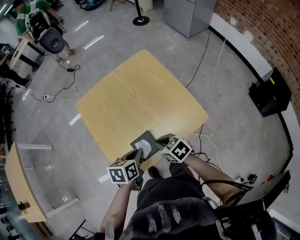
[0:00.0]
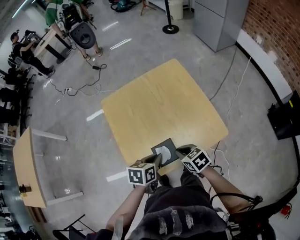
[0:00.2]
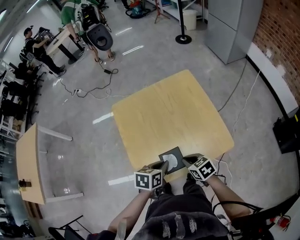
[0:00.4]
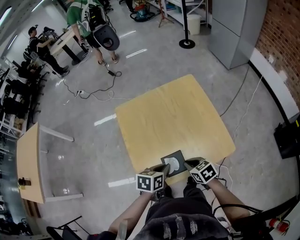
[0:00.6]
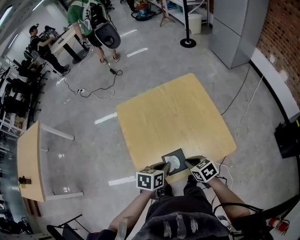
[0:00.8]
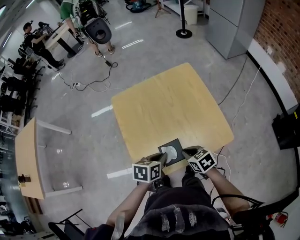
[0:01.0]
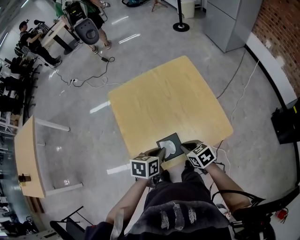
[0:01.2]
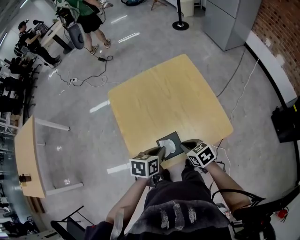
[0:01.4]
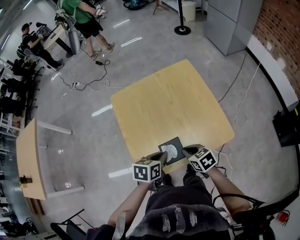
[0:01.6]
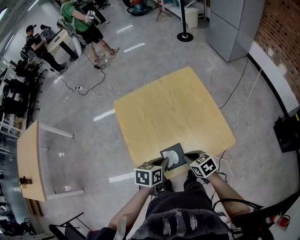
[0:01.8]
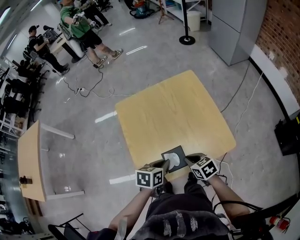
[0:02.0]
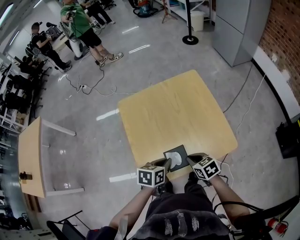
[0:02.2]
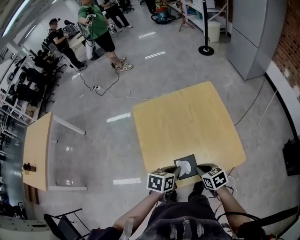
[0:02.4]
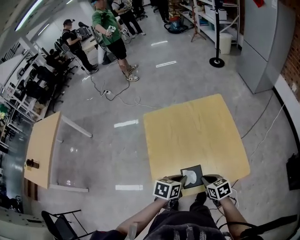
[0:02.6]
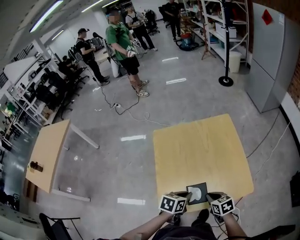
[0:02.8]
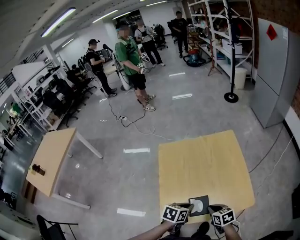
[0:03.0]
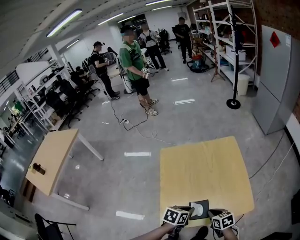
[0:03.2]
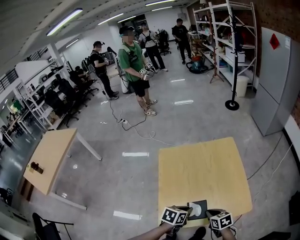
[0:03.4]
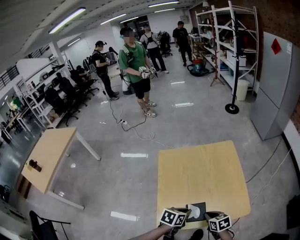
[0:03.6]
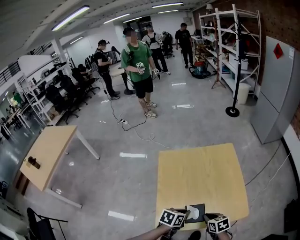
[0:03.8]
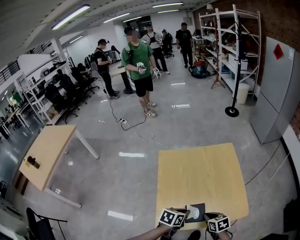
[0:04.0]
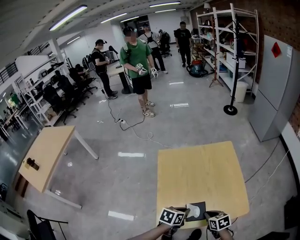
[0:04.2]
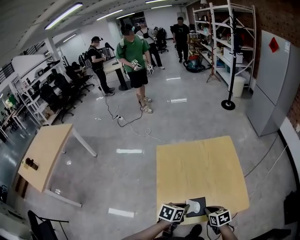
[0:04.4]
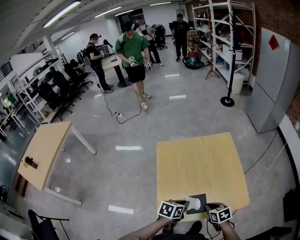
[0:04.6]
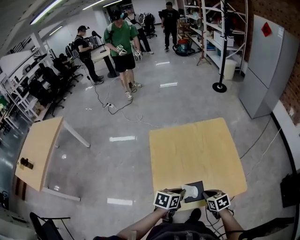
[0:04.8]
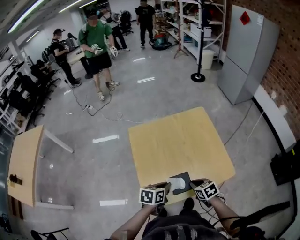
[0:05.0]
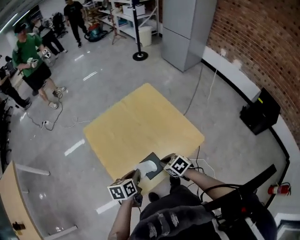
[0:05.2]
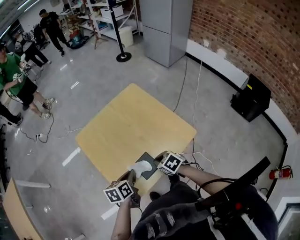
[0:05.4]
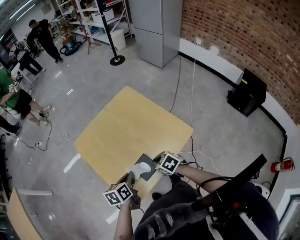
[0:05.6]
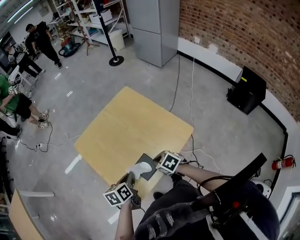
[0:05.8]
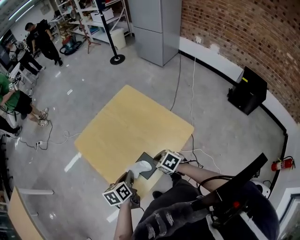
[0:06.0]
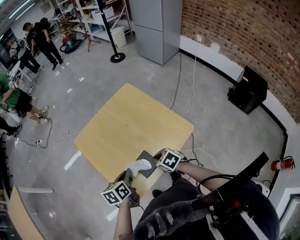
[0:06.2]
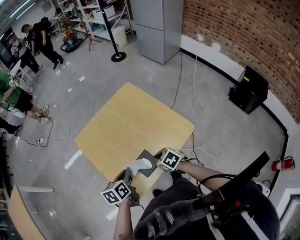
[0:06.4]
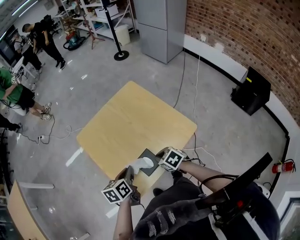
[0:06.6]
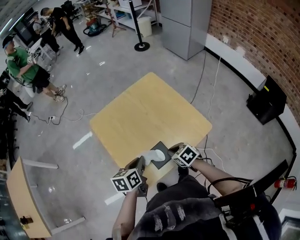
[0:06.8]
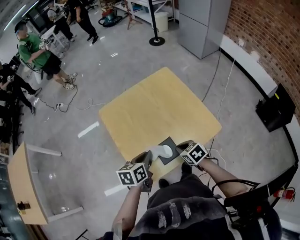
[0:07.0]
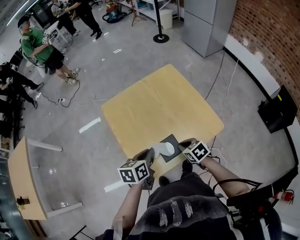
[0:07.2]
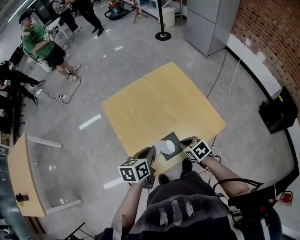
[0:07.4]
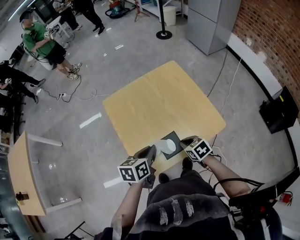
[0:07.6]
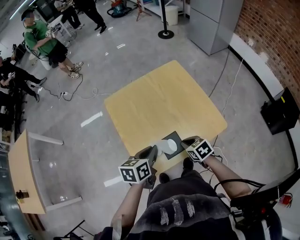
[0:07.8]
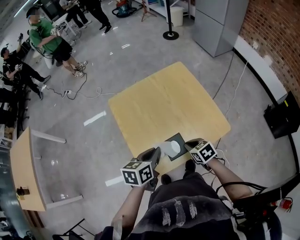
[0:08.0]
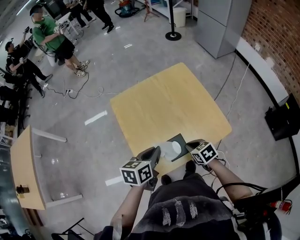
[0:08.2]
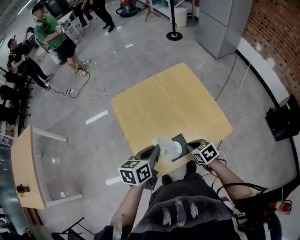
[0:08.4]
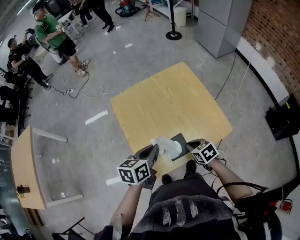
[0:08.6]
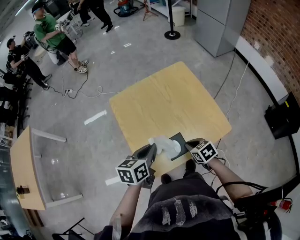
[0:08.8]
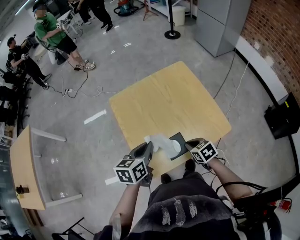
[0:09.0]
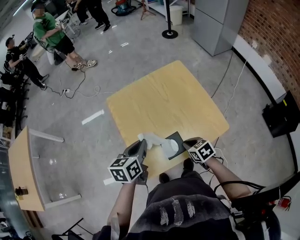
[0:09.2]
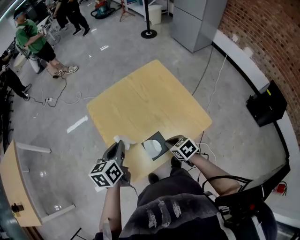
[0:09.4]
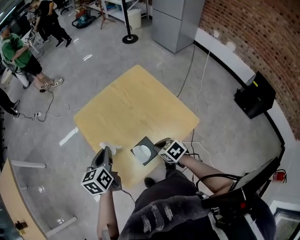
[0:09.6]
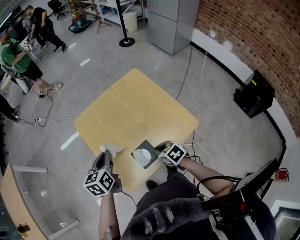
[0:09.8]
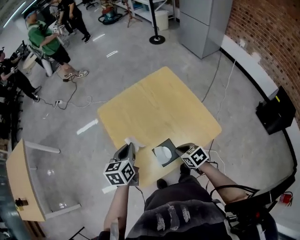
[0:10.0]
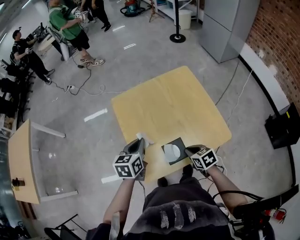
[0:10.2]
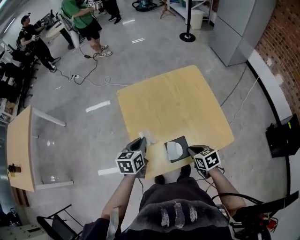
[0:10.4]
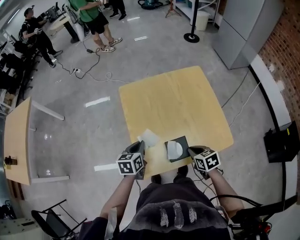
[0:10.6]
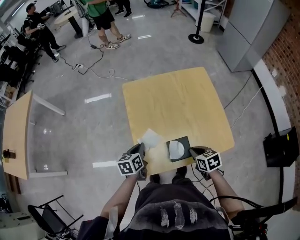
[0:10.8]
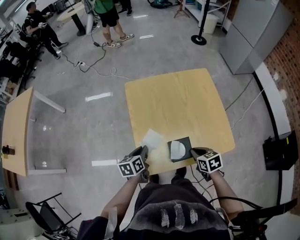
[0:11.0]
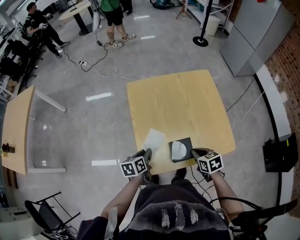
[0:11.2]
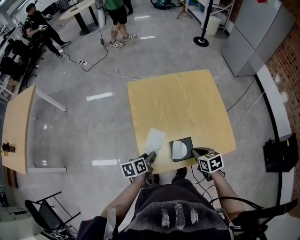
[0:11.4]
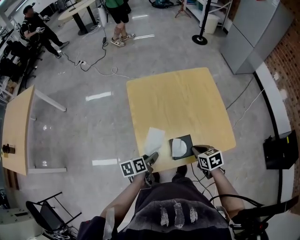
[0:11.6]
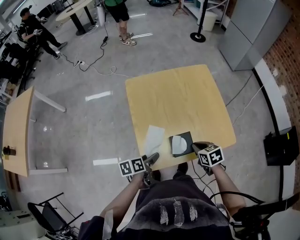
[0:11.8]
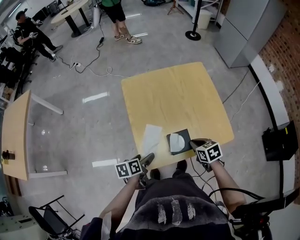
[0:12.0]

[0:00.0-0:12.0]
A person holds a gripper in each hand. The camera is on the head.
0:00.0 to 0:01.6: The grippers move only a little.
0:01.6 to 0:03.0: Both grippers stay about where they are.
0:03.0 to 0:04.4: The grippers stay close to where they were, moving slightly.
0:06.0 to 0:07.6: The grippers move only a little.
0:07.6 to 0:09.0: The left gripper moves about 5 cm.
0:09.0 to 0:10.4: The left gripper shifts about 5 cm downward.
0:10.4 to 0:12.0: The left gripper is displaced backward and downward by some 15 cm, rotates approximately 30 degrees, and opens its fingers.

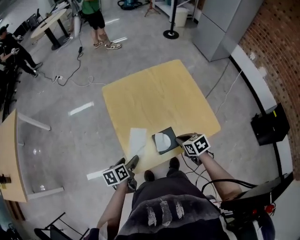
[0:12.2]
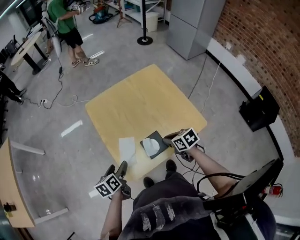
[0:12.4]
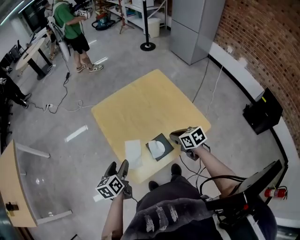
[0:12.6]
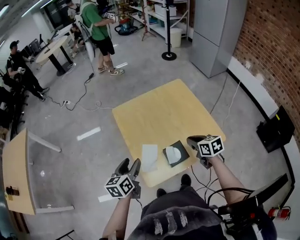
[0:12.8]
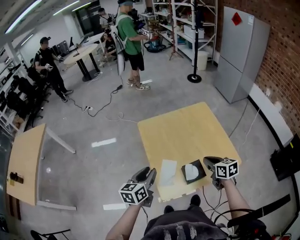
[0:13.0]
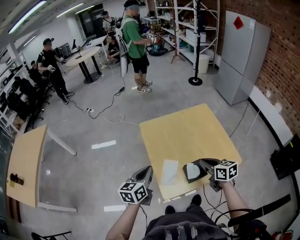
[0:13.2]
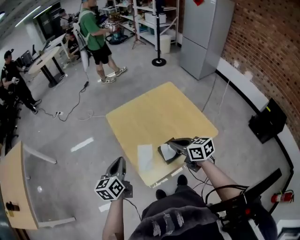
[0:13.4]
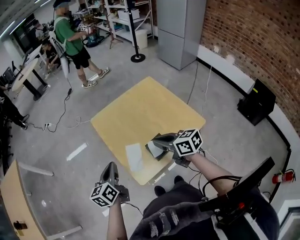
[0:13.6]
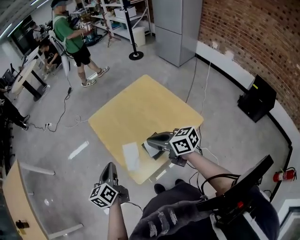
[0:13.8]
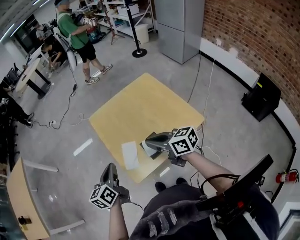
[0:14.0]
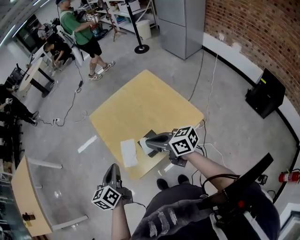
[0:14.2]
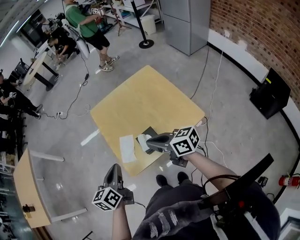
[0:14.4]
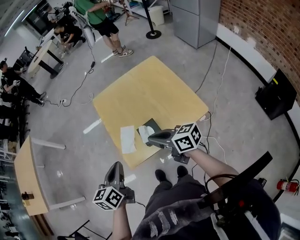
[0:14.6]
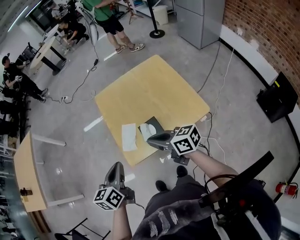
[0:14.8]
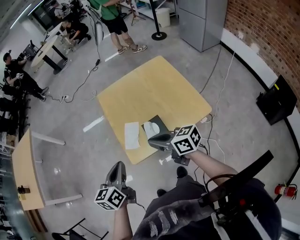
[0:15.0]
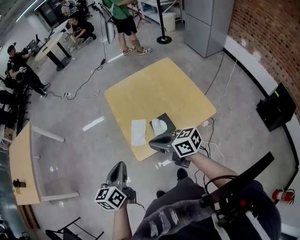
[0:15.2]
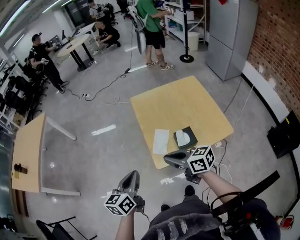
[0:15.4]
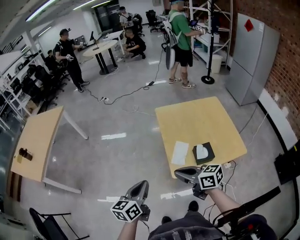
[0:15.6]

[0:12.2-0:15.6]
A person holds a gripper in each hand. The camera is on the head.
0:12.2 to 0:13.8: The grippers both shift upward by some 20 cm. The right gripper tilts its fingers some 40 degrees upward; the left gripper rotates some 30 degrees, and closes its fingers.
0:13.8 to 0:15.6: The left gripper is displaced backward and to the left by about 25 cm; the right gripper moves to the left and backward, about 25 cm, and rotates about 20 degrees.

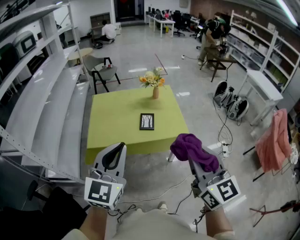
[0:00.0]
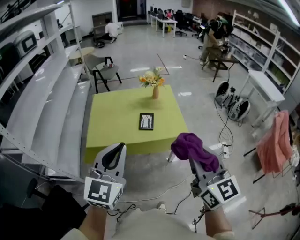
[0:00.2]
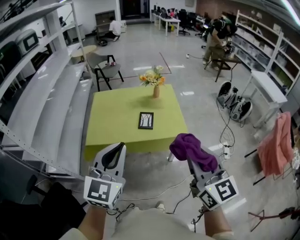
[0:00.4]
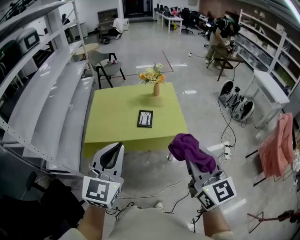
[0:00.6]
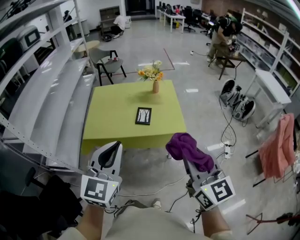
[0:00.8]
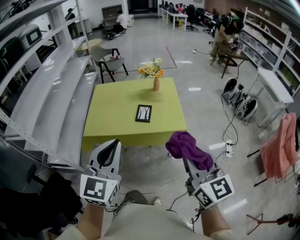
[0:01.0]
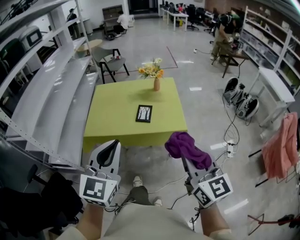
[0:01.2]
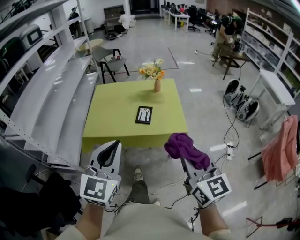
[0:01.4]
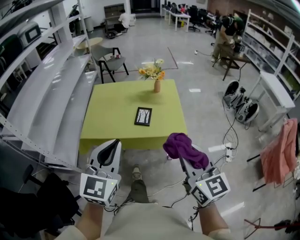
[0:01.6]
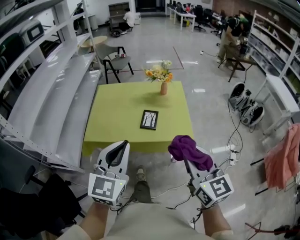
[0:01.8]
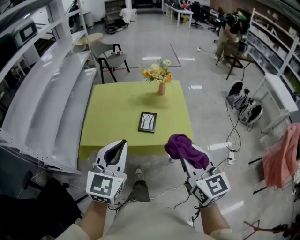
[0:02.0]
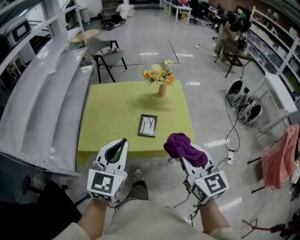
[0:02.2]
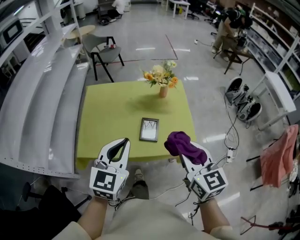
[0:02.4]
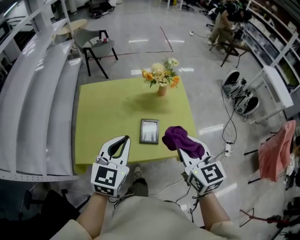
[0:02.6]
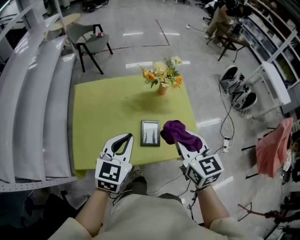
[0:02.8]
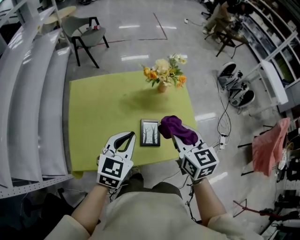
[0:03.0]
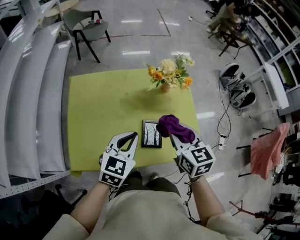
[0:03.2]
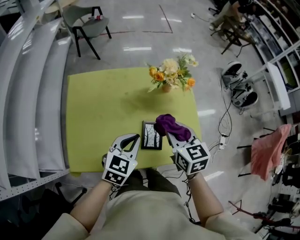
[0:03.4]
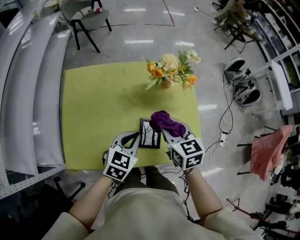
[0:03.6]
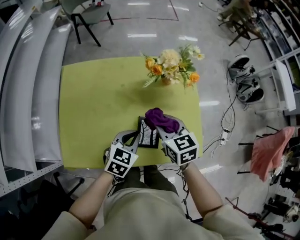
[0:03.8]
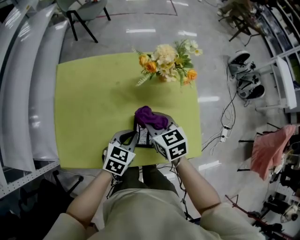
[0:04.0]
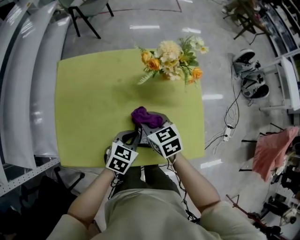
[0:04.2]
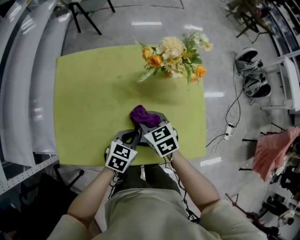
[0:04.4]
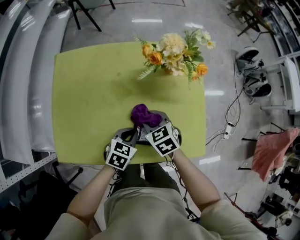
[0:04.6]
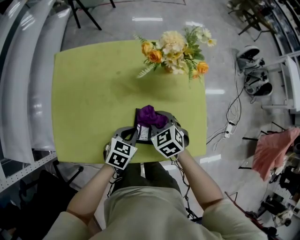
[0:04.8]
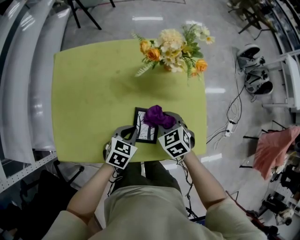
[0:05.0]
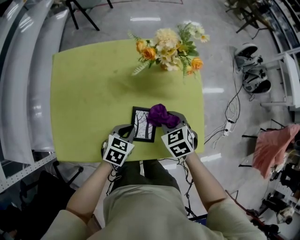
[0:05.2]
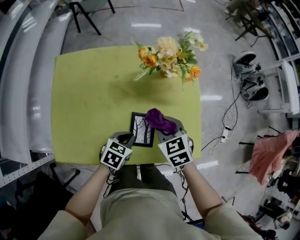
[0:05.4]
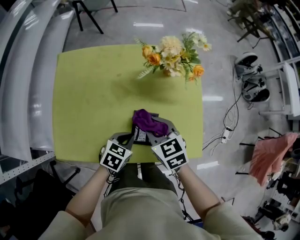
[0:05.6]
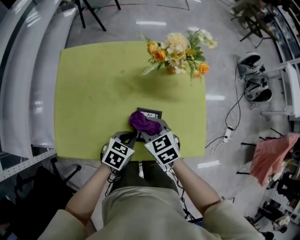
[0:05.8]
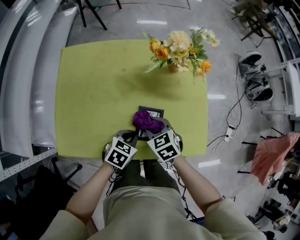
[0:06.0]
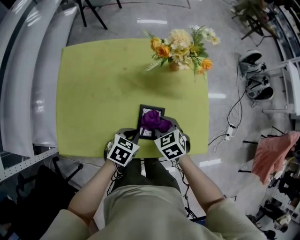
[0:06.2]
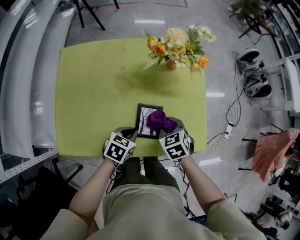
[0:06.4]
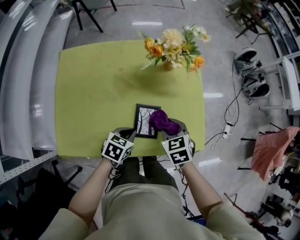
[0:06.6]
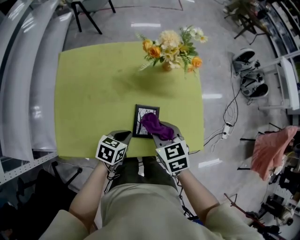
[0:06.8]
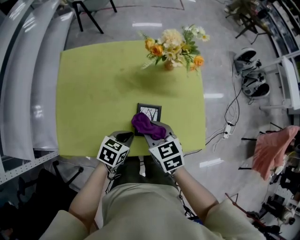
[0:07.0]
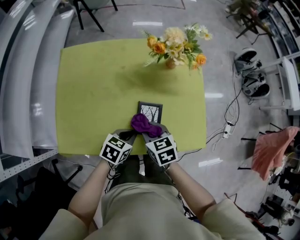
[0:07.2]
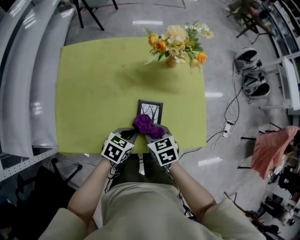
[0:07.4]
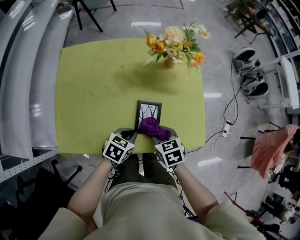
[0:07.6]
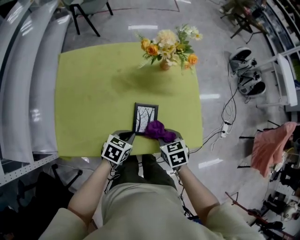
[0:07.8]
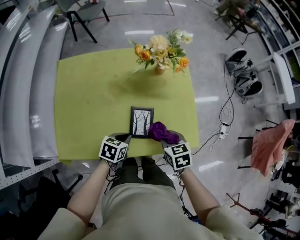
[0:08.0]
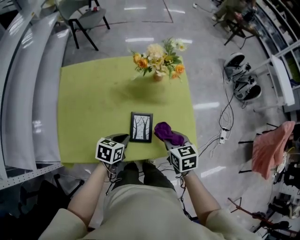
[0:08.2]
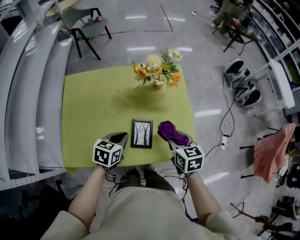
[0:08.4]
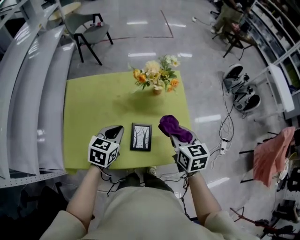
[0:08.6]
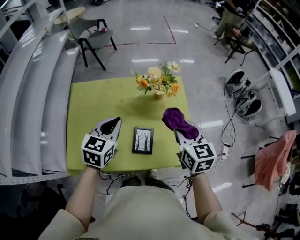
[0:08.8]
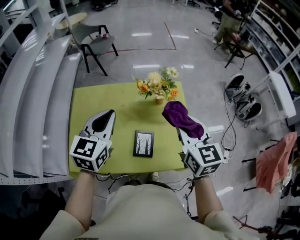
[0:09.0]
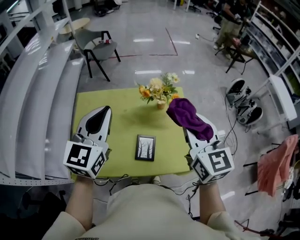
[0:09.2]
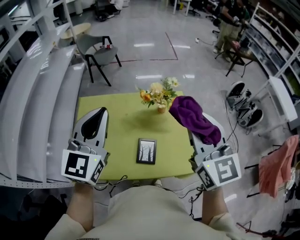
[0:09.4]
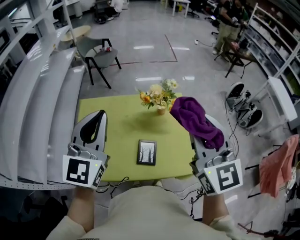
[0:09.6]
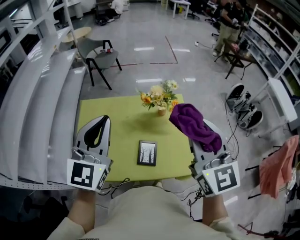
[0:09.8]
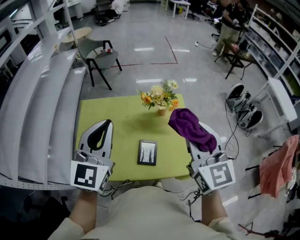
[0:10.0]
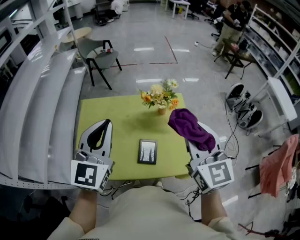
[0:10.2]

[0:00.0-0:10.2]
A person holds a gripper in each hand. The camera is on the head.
0:00.0 to 0:01.4: The left gripper is displaced to the right by about 10 cm; the right gripper goes roughly 10 cm to the right and downward.
0:01.4 to 0:03.0: The left gripper shifts about 40 cm forward and downward, and turns by about 30 degrees; the right gripper shifts approximately 40 cm forward, and changes its angle by about 30 degrees.
0:03.0 to 0:04.4: The two grippers go approximately 25 cm downward. The right gripper swivels about 30 degrees. The left gripper turns by some 30 degrees.
0:04.4 to 0:05.8: The right gripper travels to the right and back again, some 10 cm each way.
0:05.8 to 0:07.2: The right gripper moves some 10 cm to the right and comes back.
0:07.2 to 0:08.8: The left gripper heads upward and forward, covering about 25 cm, and changes its angle by approximately 30 degrees, while the right gripper moves upward and to the right, approximately 30 cm, and changes its angle by approximately 30 degrees.
0:08.8 to 0:10.2: The grippers both shift upward by approximately 20 cm. The left gripper turns by roughly 30 degrees. Meanwhile the right gripper swivels about 20 degrees.
